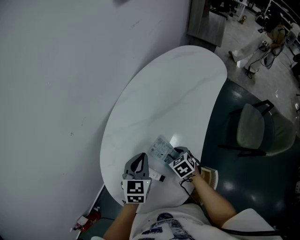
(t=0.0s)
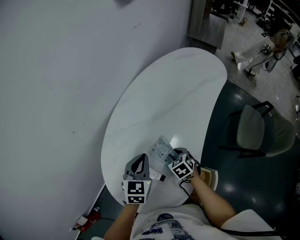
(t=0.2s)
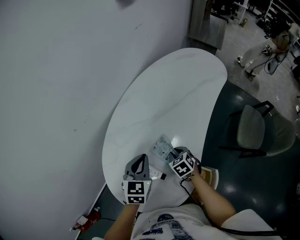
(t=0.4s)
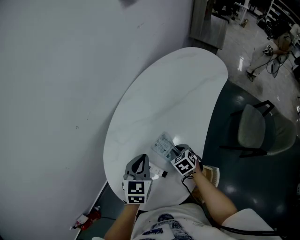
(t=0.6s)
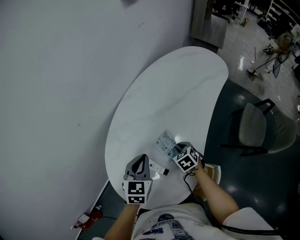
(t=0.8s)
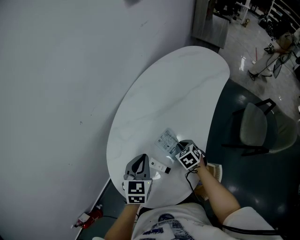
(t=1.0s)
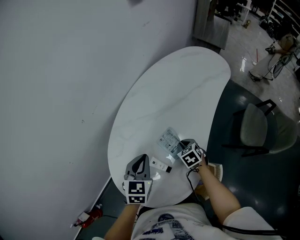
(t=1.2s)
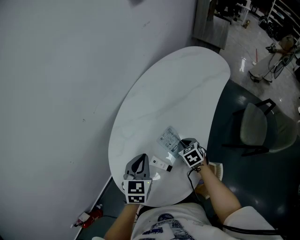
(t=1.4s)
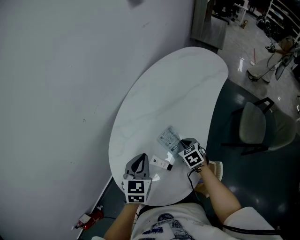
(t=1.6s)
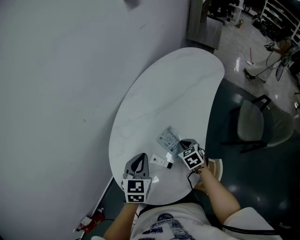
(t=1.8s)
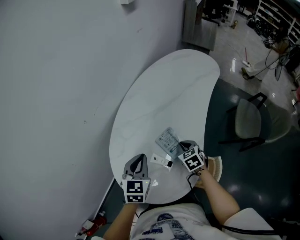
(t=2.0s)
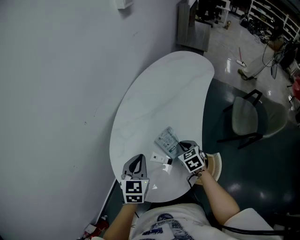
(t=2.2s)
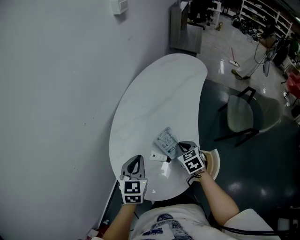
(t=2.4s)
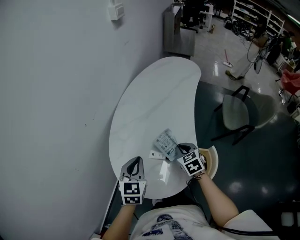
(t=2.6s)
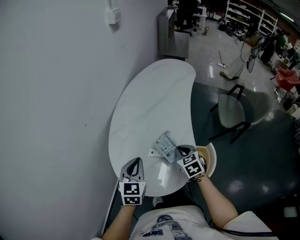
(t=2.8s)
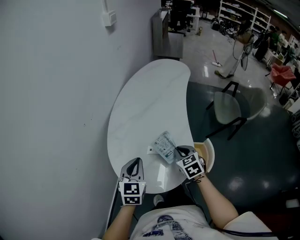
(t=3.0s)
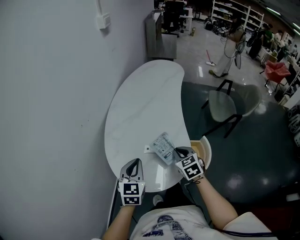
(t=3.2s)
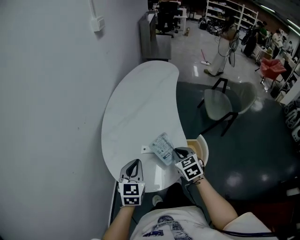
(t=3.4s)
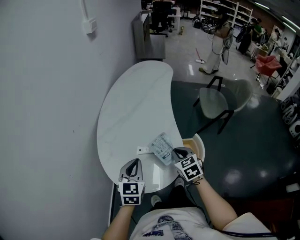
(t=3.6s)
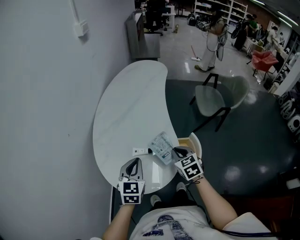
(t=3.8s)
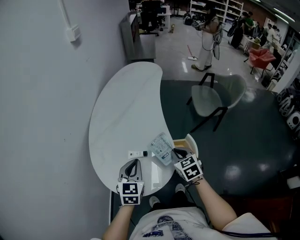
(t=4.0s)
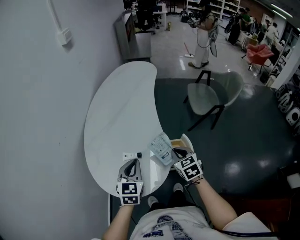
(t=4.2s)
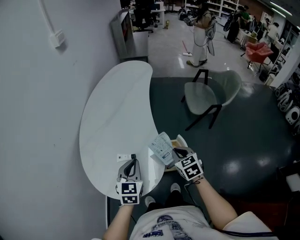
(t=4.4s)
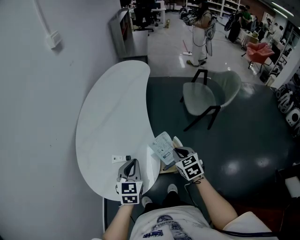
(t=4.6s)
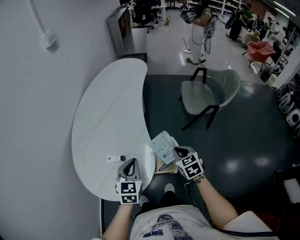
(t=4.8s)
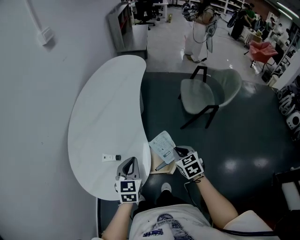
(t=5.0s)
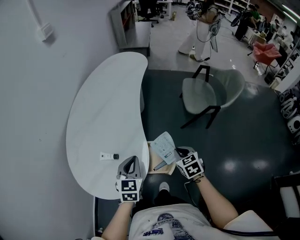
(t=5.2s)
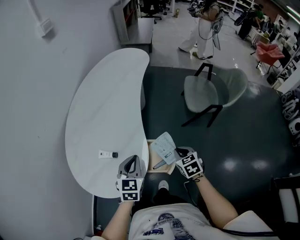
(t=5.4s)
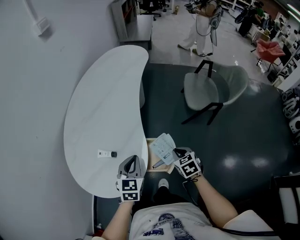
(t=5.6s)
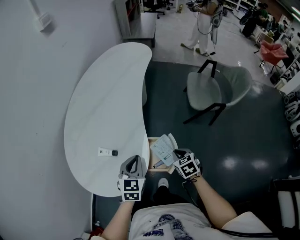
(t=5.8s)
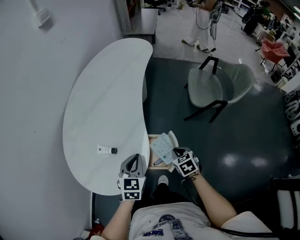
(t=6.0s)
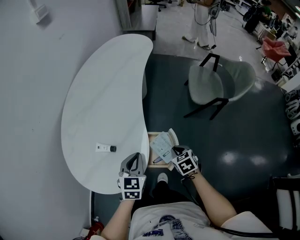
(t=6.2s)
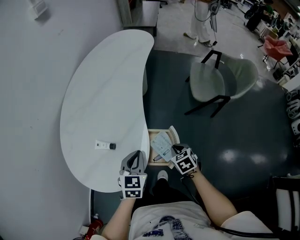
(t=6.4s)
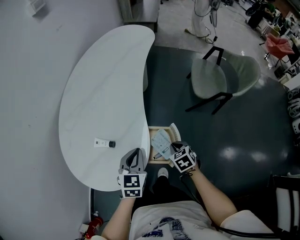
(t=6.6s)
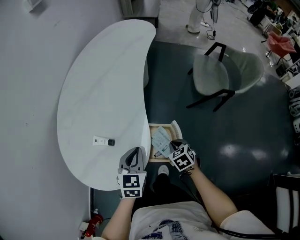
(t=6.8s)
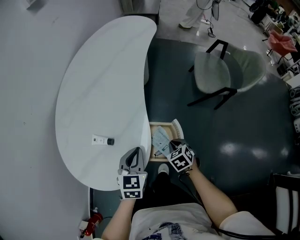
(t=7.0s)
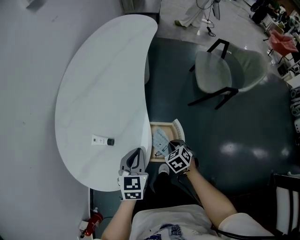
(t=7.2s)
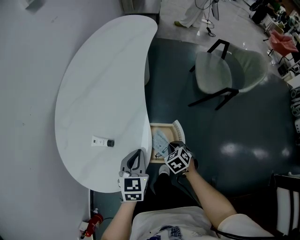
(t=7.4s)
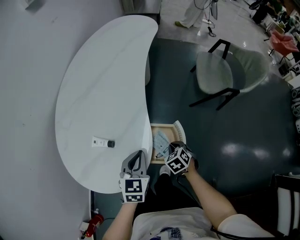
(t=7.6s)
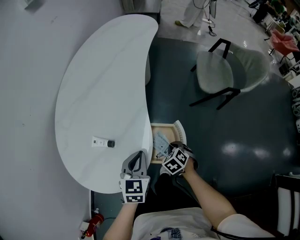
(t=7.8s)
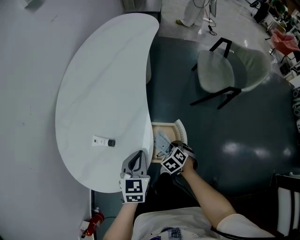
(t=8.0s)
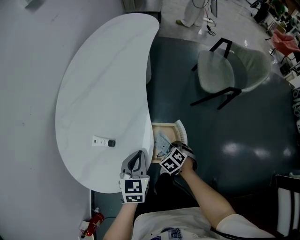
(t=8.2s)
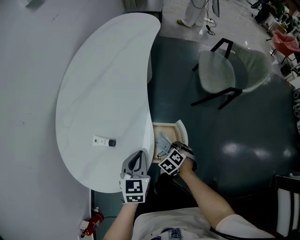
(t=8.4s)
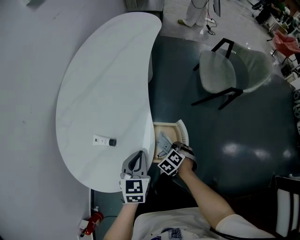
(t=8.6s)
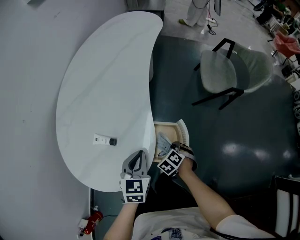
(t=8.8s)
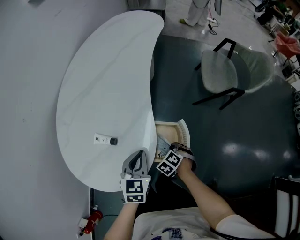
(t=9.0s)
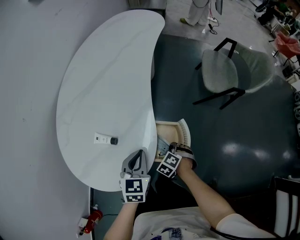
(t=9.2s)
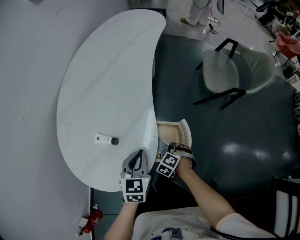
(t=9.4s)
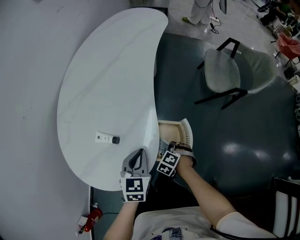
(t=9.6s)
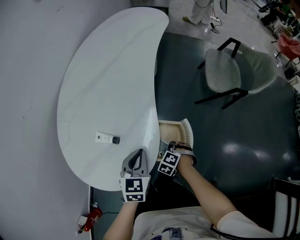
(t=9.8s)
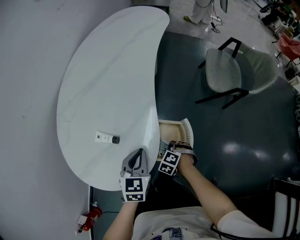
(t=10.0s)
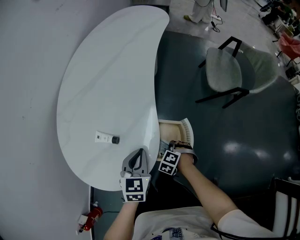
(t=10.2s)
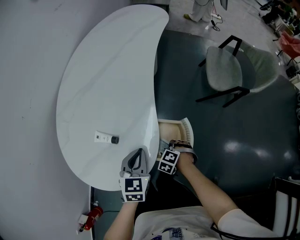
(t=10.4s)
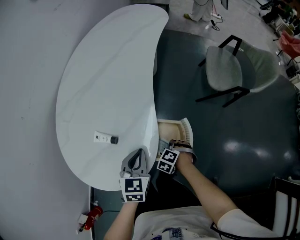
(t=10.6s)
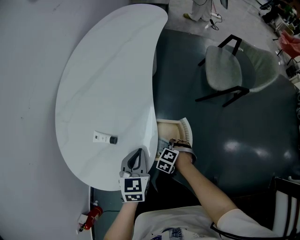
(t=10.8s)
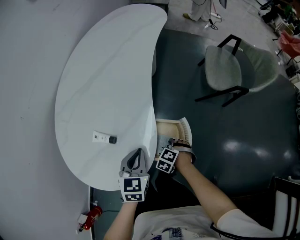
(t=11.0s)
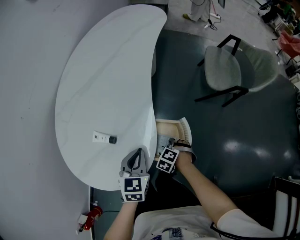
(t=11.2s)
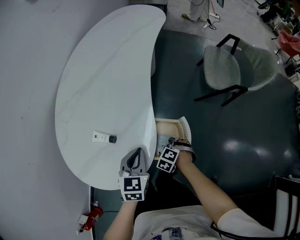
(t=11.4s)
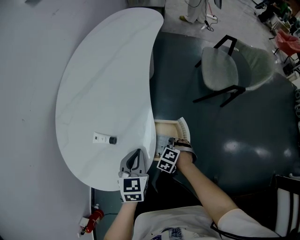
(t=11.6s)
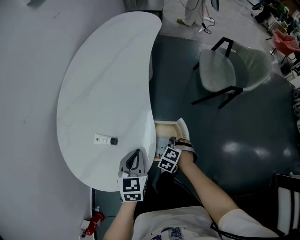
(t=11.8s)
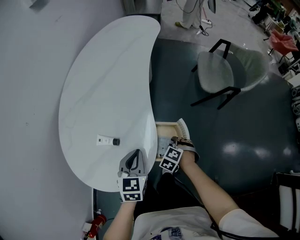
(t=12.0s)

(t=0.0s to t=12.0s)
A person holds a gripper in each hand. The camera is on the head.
t=0.0s - t=1.6s: The left gripper shifts some 10 cm backward and to the left. Meanwhile the right gripper closes.
t=1.6s - t=3.0s: The left gripper goes approximately 10 cm backward. The right gripper shifts roughly 20 cm backward and upward, and turns by about 20 degrees.
t=3.0s - t=4.4s: Both grippers travel together to the right, approximately 15 cm.
t=4.4s - t=6.0s: The right gripper heads downward and to the right, covering about 15 cm. The left gripper moves to the right and downward, about 15 cm.
t=6.0s - t=7.6s: The right gripper travels downward by approximately 10 cm. Meanwhile the left gripper travels downward by roughly 5 cm.
t=7.6s - t=9.0s: The right gripper rotates roughly 20 degrees.
t=9.0s - t=10.4s: The right gripper turns by roughly 20 degrees.
t=10.4s - t=12.0s: The right gripper heads upward, covering about 5 cm.

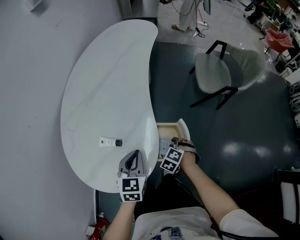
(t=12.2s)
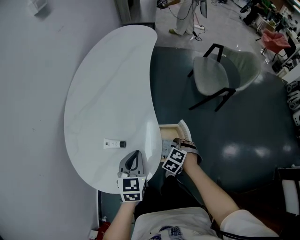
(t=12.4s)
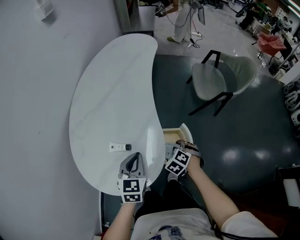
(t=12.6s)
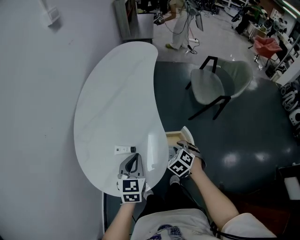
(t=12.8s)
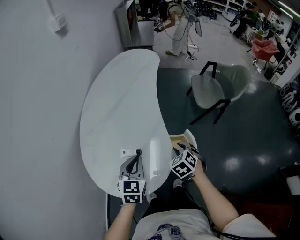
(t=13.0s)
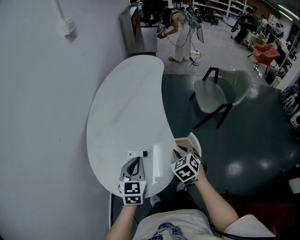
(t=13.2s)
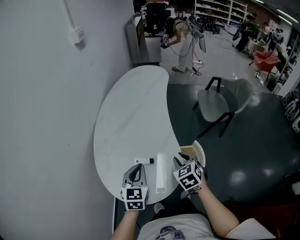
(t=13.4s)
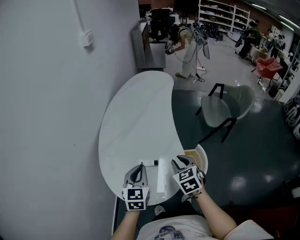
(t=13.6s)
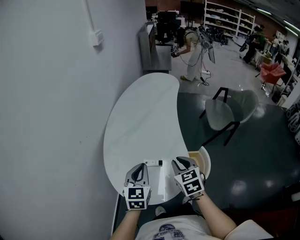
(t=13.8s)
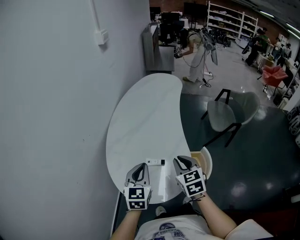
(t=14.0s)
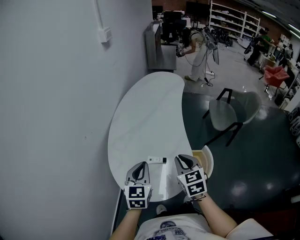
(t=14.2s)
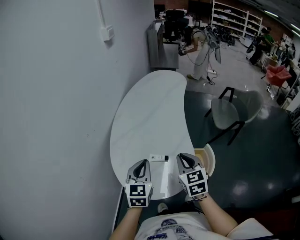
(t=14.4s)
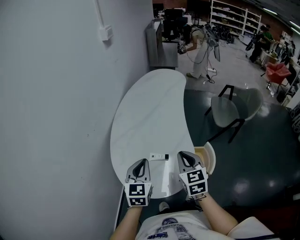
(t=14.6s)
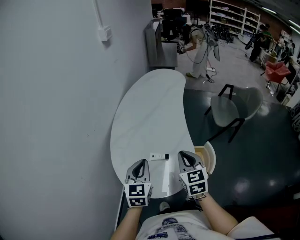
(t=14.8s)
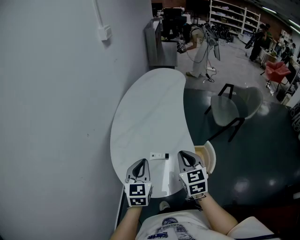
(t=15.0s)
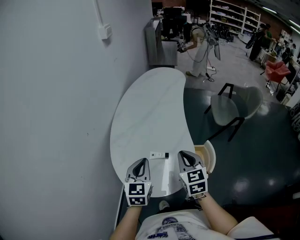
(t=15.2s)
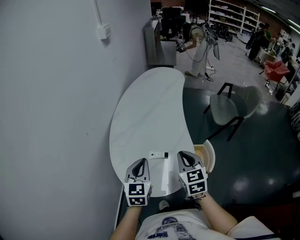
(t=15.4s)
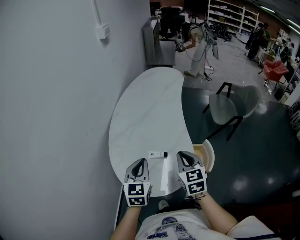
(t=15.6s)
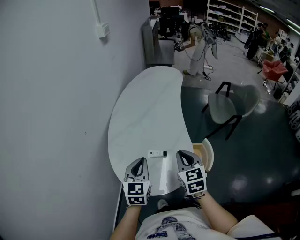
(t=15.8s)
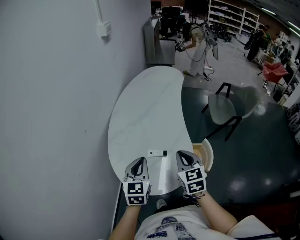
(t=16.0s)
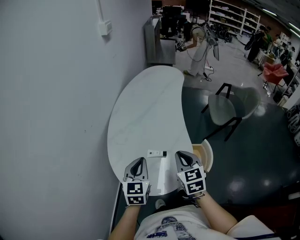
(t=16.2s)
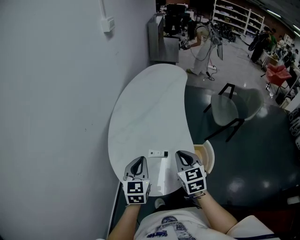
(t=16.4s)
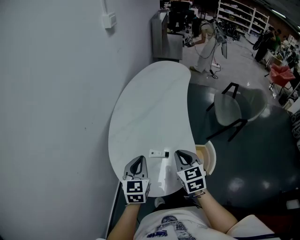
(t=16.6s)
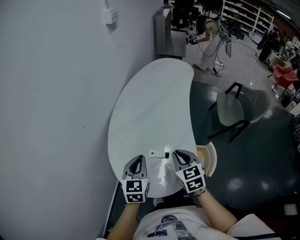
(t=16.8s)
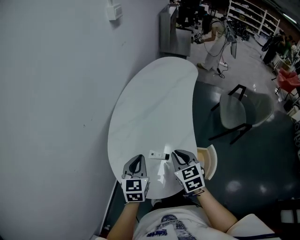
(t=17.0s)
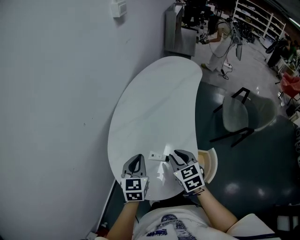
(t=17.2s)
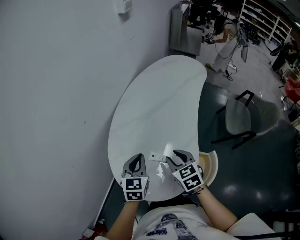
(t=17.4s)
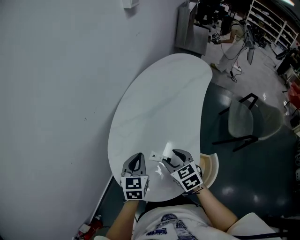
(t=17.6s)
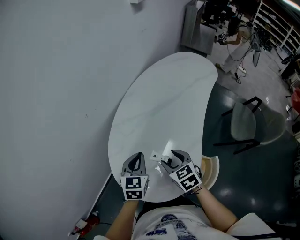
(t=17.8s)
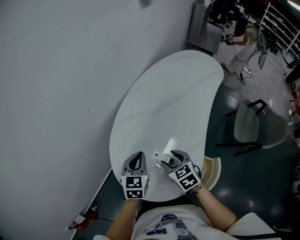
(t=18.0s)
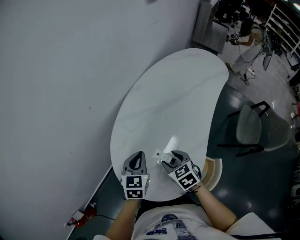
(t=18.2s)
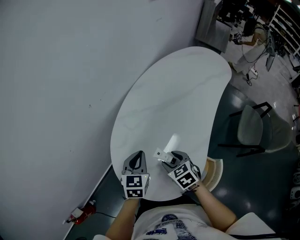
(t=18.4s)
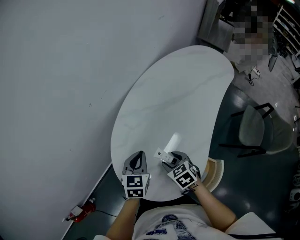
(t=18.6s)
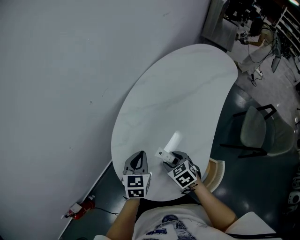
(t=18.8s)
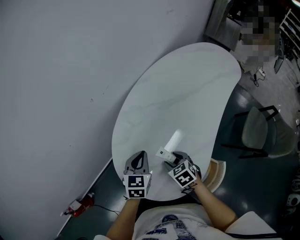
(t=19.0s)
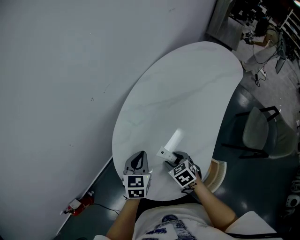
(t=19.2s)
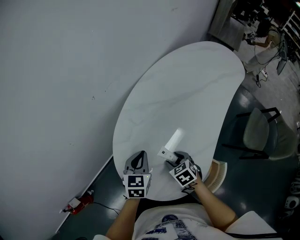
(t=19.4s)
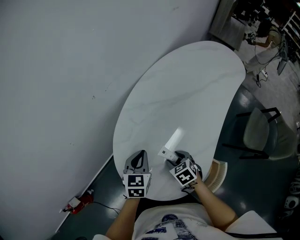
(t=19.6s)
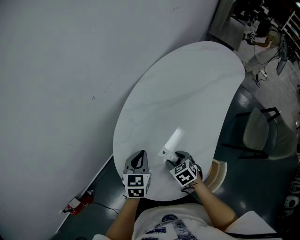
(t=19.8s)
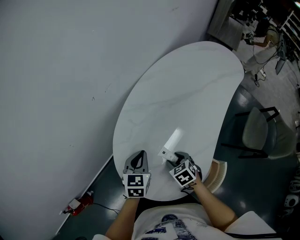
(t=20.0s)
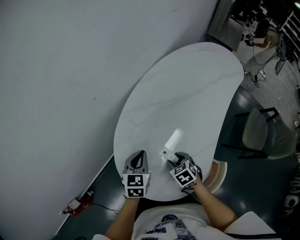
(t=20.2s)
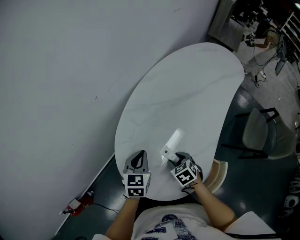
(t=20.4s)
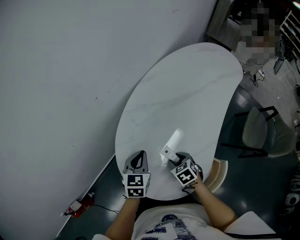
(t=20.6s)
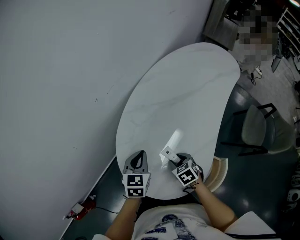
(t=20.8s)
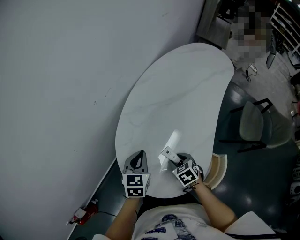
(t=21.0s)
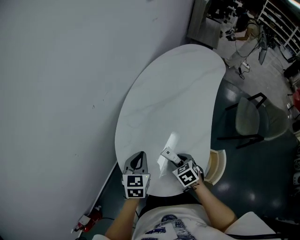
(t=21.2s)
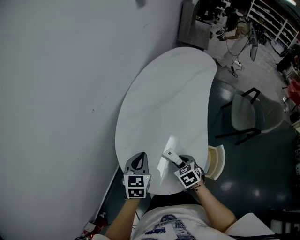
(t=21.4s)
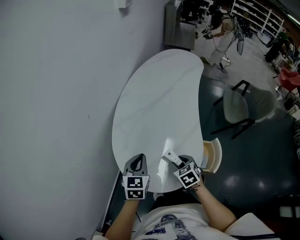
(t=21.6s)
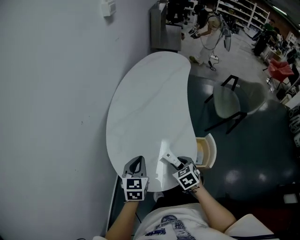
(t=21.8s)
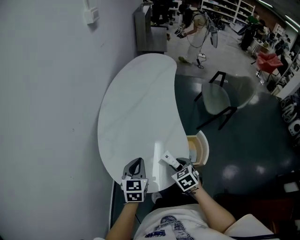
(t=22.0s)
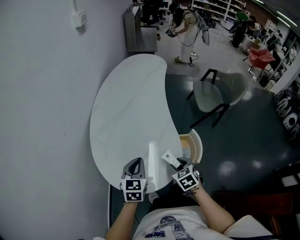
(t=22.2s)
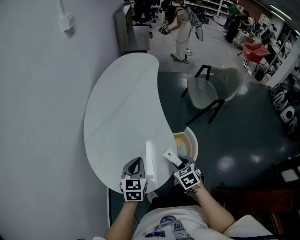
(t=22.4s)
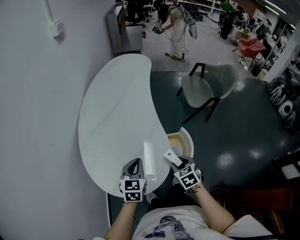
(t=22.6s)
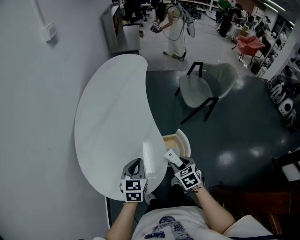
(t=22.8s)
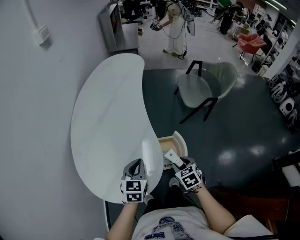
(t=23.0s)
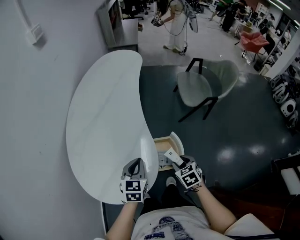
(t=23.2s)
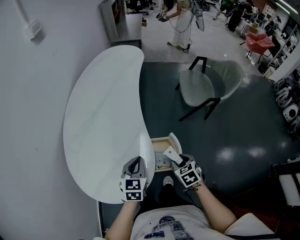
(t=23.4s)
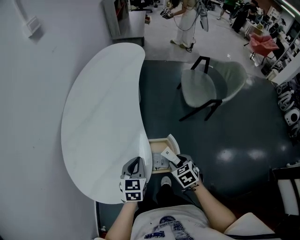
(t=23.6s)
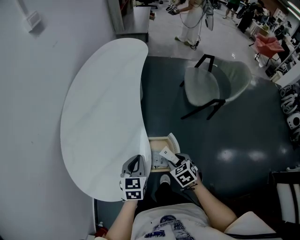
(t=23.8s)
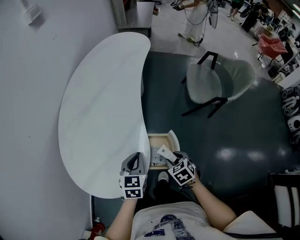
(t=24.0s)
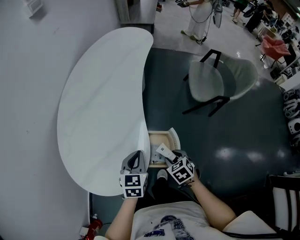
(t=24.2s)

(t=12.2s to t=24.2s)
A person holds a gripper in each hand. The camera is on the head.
t=12.2s - t=13.8s: The right gripper travels upward and to the left by about 40 cm, and tilts its fingers some 40 degrees upward, while the left gripper moves to the left and upward, approximately 25 cm.
t=13.8s - t=16.6s: The grippers stay close to where they were, moving slightly.
t=16.6s - t=18.2s: The left gripper is displaced downward by about 10 cm, and changes its angle by some 20 degrees. The right gripper goes approximately 10 cm downward, changes its angle by roughly 40 degrees, and opens up.
t=18.2s - t=19.8s: The left gripper ends up roughly 5 cm from where it was. Meanwhile the right gripper goes about 10 cm downward.
t=19.8s - t=21.2s: The right gripper changes place by about 5 cm.
t=21.2s - t=22.6s: The right gripper ends up some 25 cm from where it was, and swivels roughly 40 degrees. The left gripper changes place by about 20 cm, and rotates approximately 30 degrees.
t=22.6s - t=24.2s: The left gripper travels to the right and downward by approximately 20 cm. Meanwhile the right gripper goes roughly 20 cm to the right, downward and forward.
